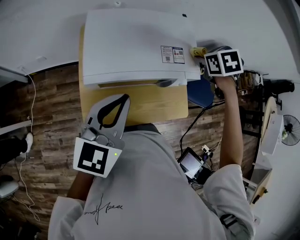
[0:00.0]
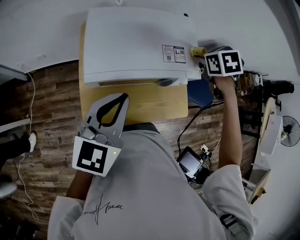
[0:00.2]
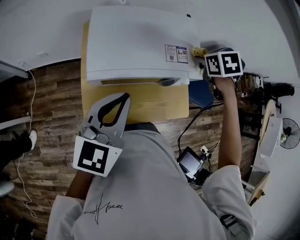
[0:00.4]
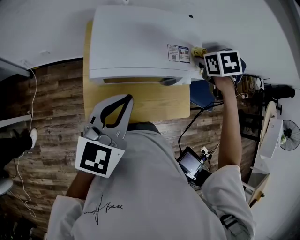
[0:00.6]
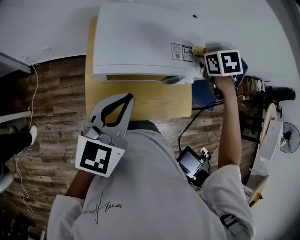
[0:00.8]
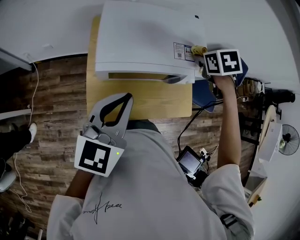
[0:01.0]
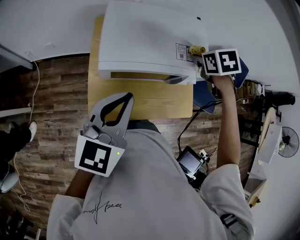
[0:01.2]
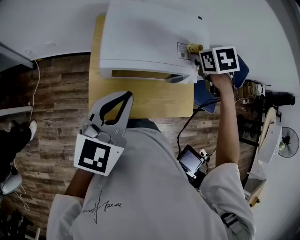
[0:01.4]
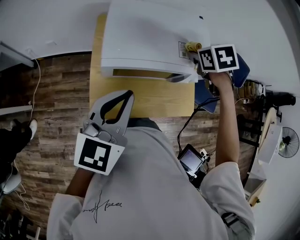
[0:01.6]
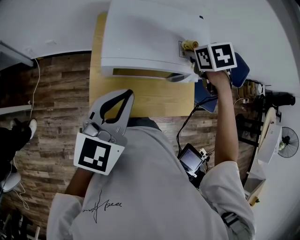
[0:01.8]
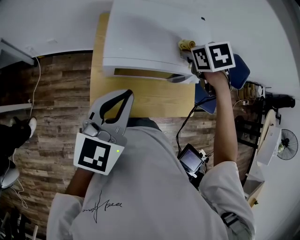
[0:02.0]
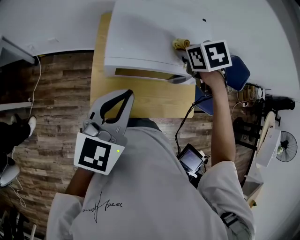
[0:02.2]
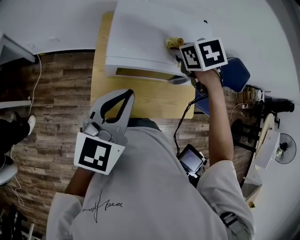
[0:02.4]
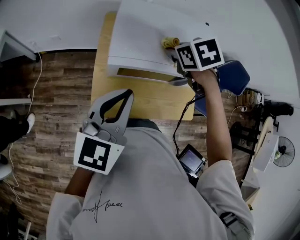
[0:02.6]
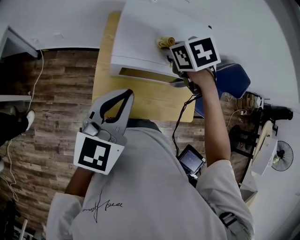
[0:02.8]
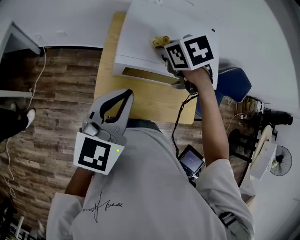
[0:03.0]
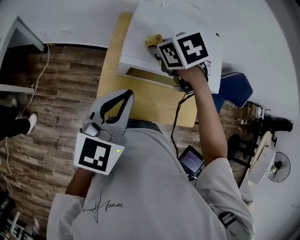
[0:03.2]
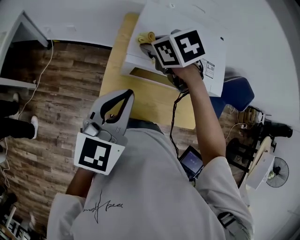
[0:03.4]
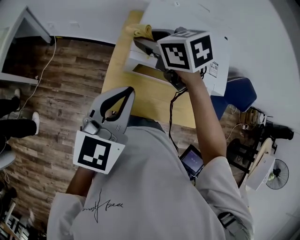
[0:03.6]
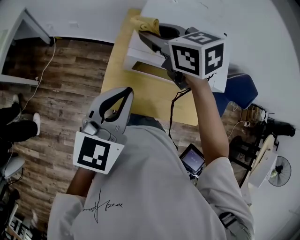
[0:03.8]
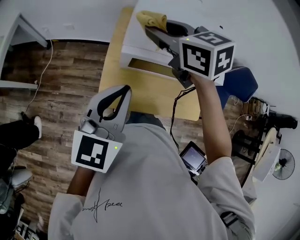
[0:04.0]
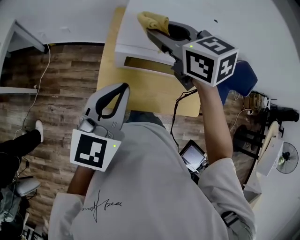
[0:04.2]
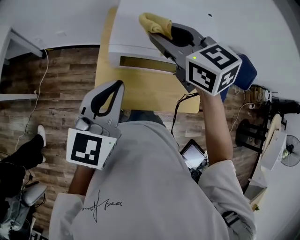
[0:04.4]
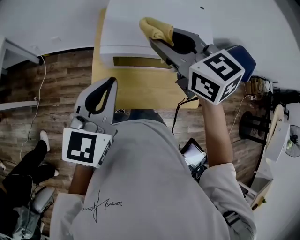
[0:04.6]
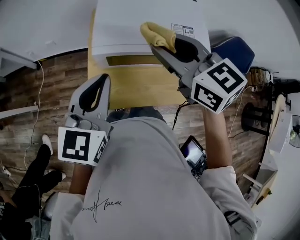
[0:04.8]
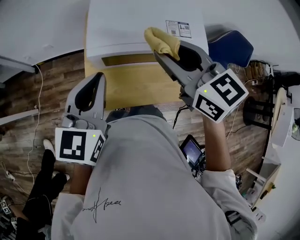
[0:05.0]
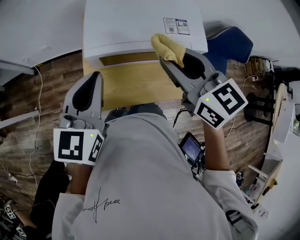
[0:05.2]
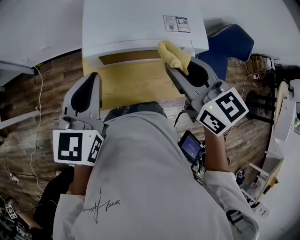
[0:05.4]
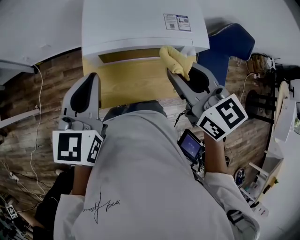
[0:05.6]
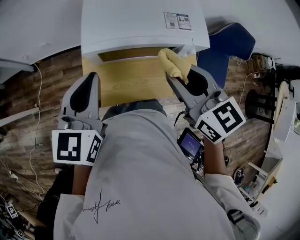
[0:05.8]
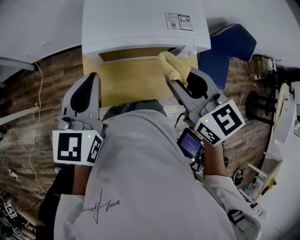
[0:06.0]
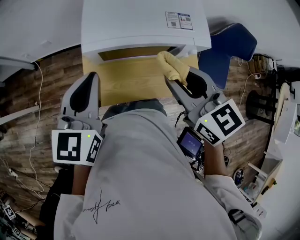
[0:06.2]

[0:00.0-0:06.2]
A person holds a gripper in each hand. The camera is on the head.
0:00.0 to 0:01.6: The left gripper ends up approximately 5 cm from where it was, while the right gripper travels to the left by roughly 10 cm.
0:01.6 to 0:03.2: The right gripper moves roughly 25 cm, and swivels some 30 degrees.
0:03.2 to 0:04.6: The right gripper heads upward and backward, covering approximately 15 cm, goes to the left and returns, some 10 cm each way, and angles its fingers upward, by about 40 degrees.
0:04.6 to 0:06.2: The right gripper goes about 15 cm backward and to the right.

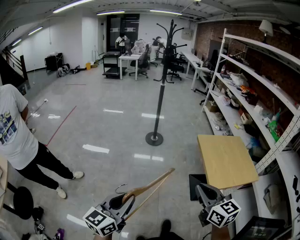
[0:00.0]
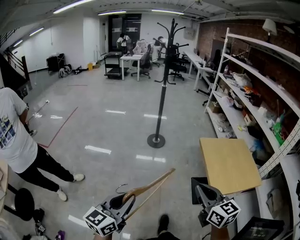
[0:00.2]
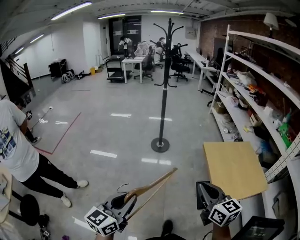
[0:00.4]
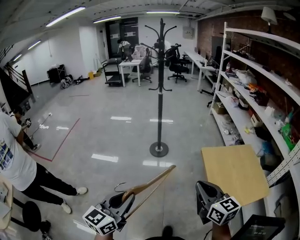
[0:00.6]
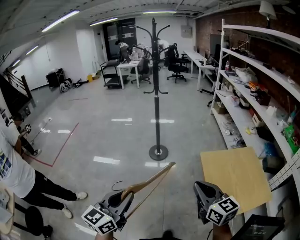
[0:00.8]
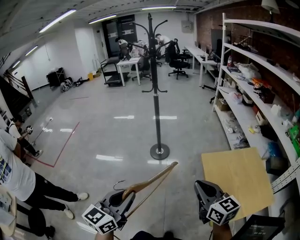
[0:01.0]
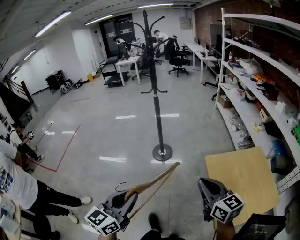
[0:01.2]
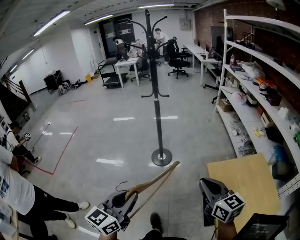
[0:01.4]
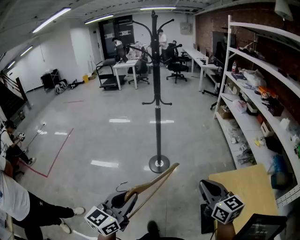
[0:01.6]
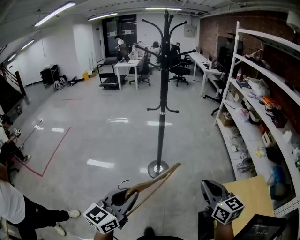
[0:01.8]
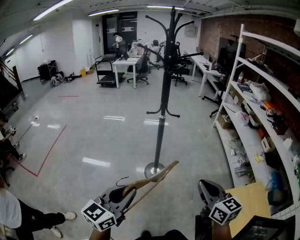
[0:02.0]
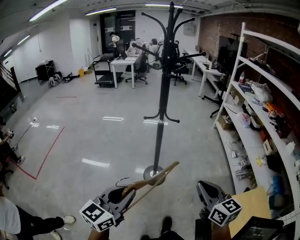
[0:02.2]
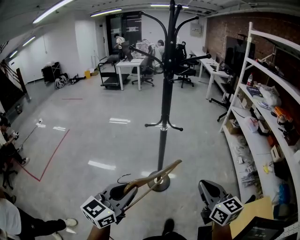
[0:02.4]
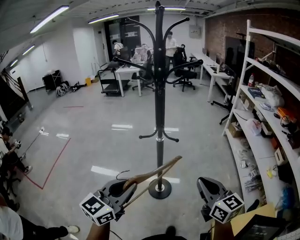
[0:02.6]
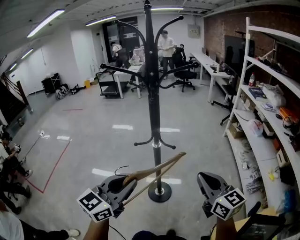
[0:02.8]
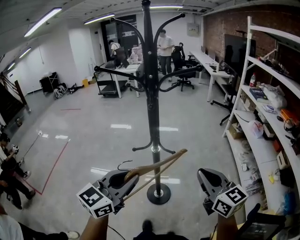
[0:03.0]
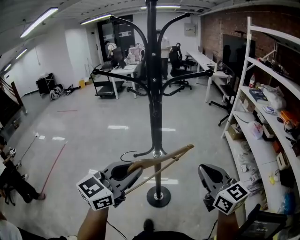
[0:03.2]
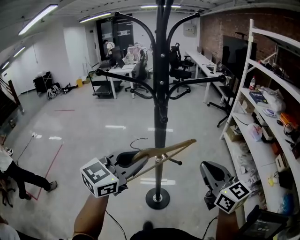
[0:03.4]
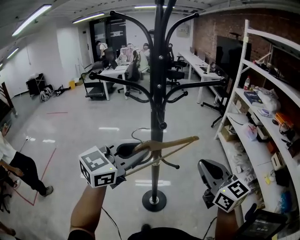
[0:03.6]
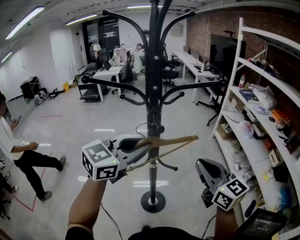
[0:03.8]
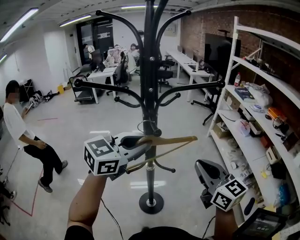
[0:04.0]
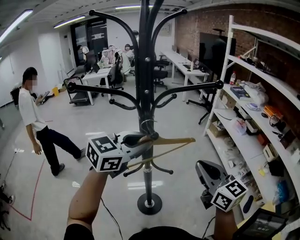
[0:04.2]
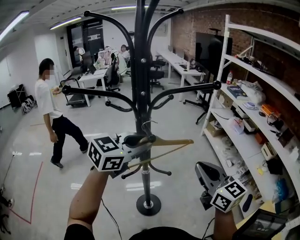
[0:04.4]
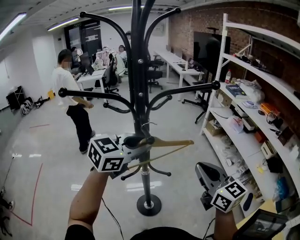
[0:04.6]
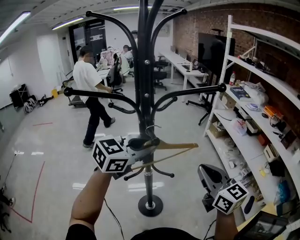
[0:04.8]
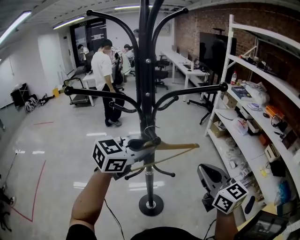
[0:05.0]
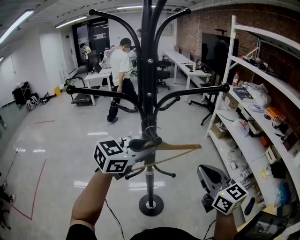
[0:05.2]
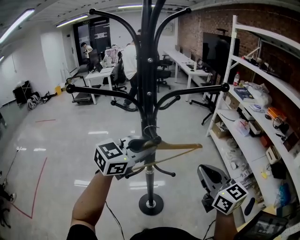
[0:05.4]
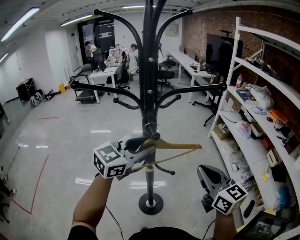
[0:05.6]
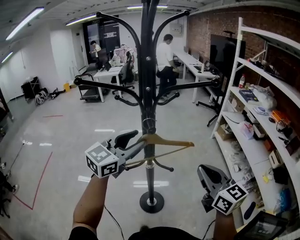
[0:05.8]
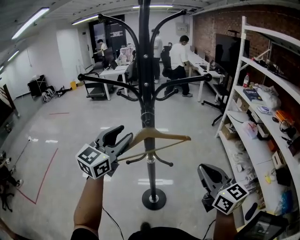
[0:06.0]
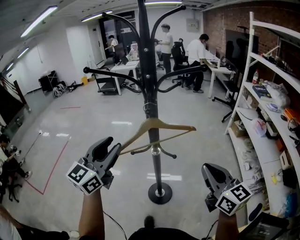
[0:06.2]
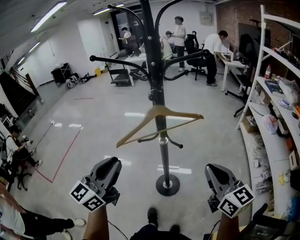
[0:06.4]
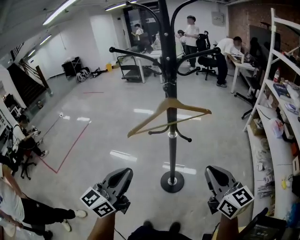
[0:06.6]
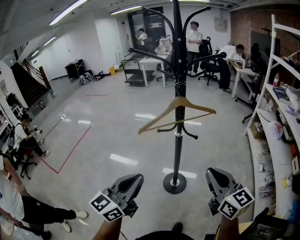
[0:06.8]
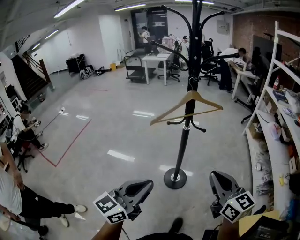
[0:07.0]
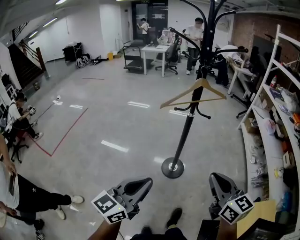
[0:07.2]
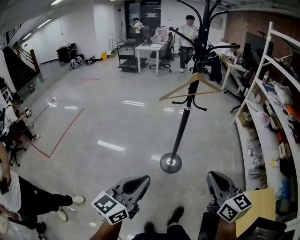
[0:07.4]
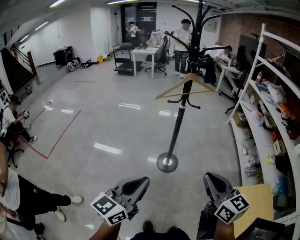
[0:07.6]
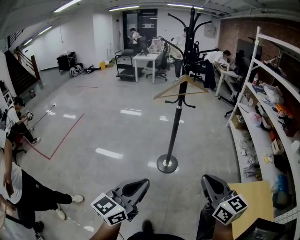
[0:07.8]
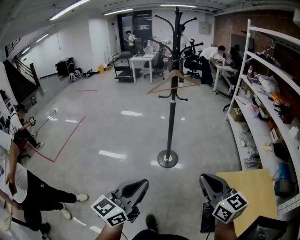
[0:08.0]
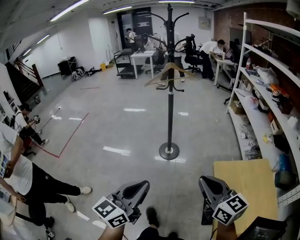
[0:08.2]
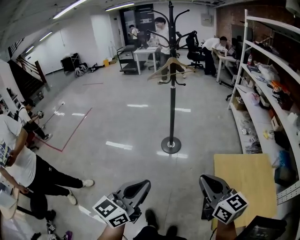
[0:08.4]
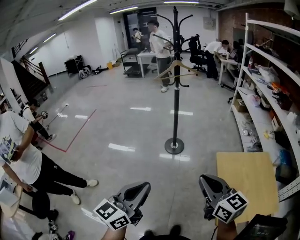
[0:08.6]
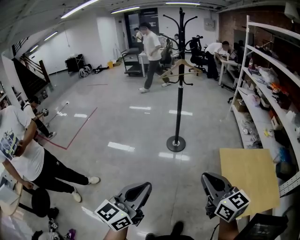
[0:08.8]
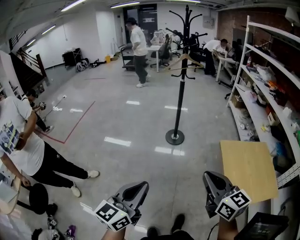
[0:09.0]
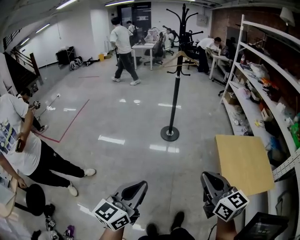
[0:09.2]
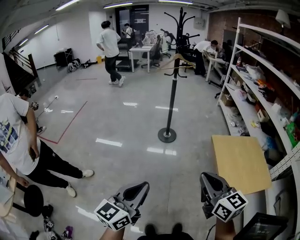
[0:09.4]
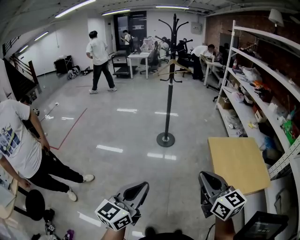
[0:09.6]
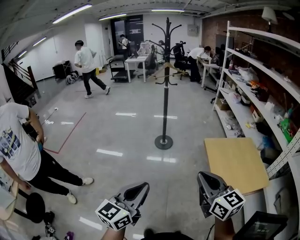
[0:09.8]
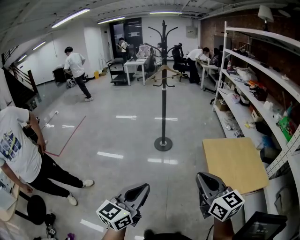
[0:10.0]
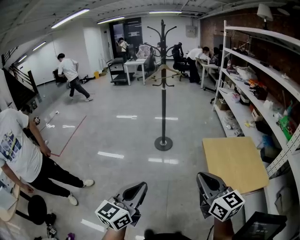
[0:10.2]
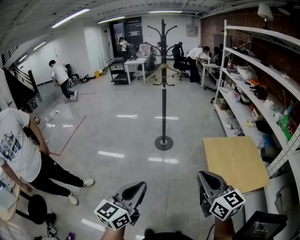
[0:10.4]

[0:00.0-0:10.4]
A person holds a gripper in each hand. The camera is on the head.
0:00.0 to 0:01.4: The grippers both shift forward by roughly 35 cm.
0:01.4 to 0:03.0: Both grippers are carried forward, about 50 cm.
0:03.0 to 0:04.4: The left gripper travels forward by approximately 25 cm, and turns by about 30 degrees; the right gripper is displaced forward by approximately 10 cm.
0:04.4 to 0:06.0: The left gripper moves to the left and backward, approximately 10 cm, turns by roughly 30 degrees, and opens.
0:06.0 to 0:07.4: The left gripper moves backward, approximately 50 cm, turns by some 20 degrees, and closes its fingers. Meanwhile the right gripper moves backward, roughly 30 cm.
0:07.4 to 0:09.0: The two grippers travel together, backward, about 40 cm.
0:09.0 to 0:10.4: The right gripper is displaced backward and to the right by roughly 10 cm, while the left gripper moves to the right and backward, roughly 10 cm.

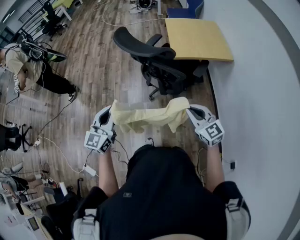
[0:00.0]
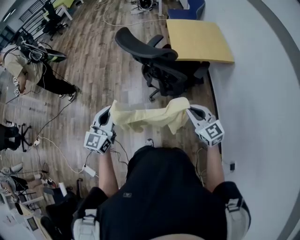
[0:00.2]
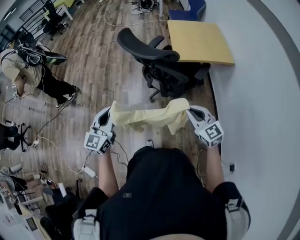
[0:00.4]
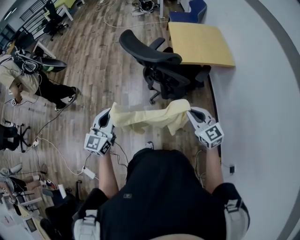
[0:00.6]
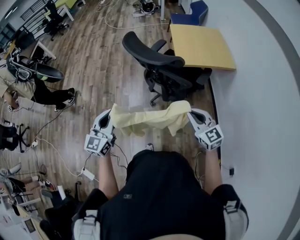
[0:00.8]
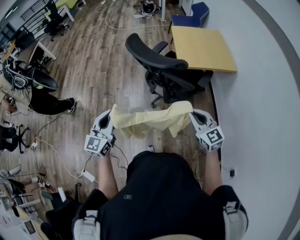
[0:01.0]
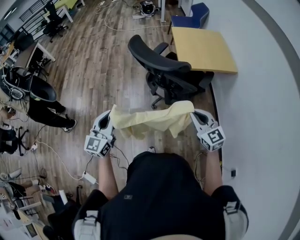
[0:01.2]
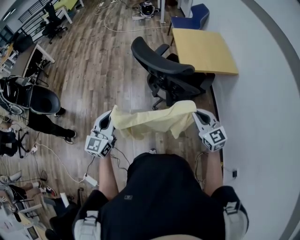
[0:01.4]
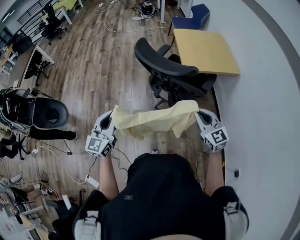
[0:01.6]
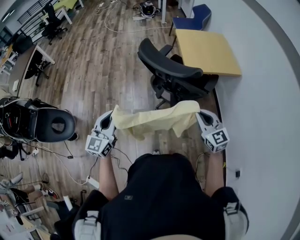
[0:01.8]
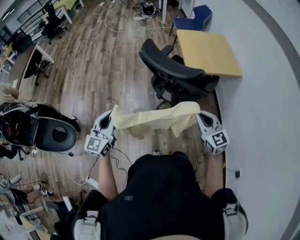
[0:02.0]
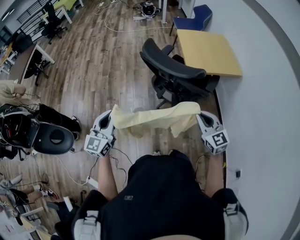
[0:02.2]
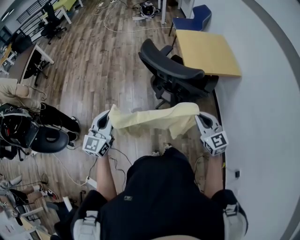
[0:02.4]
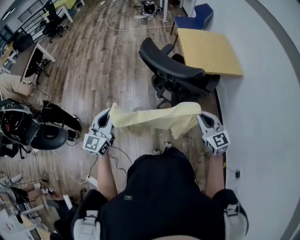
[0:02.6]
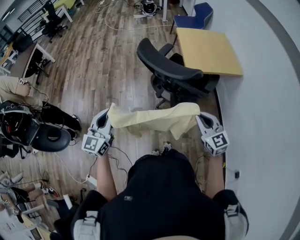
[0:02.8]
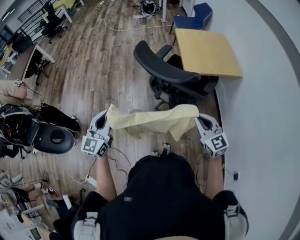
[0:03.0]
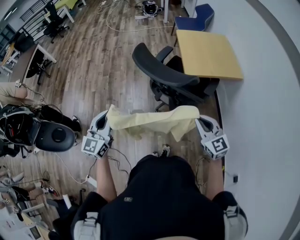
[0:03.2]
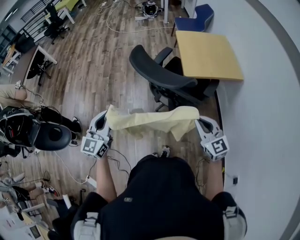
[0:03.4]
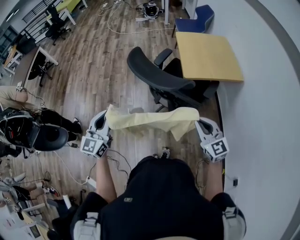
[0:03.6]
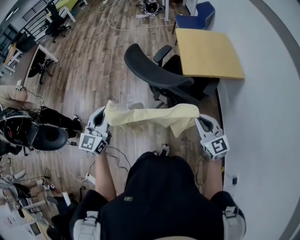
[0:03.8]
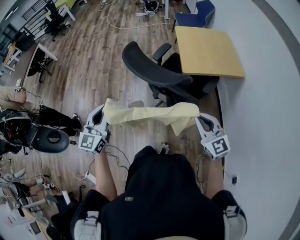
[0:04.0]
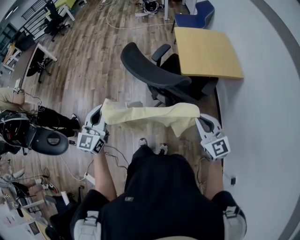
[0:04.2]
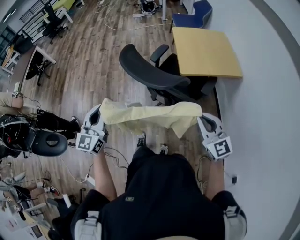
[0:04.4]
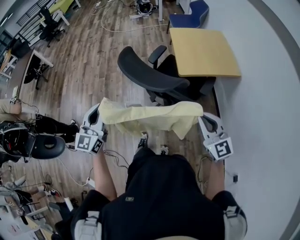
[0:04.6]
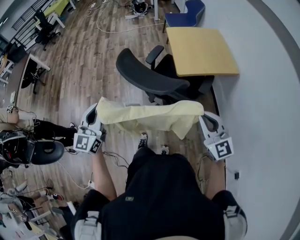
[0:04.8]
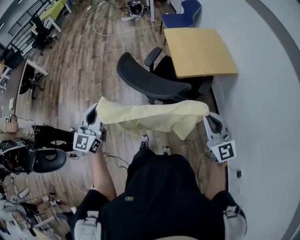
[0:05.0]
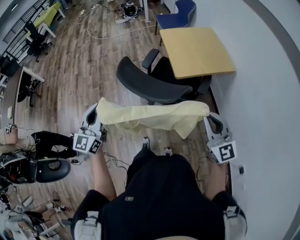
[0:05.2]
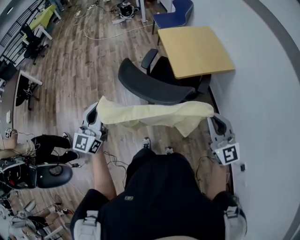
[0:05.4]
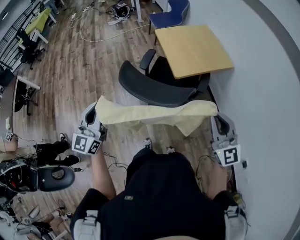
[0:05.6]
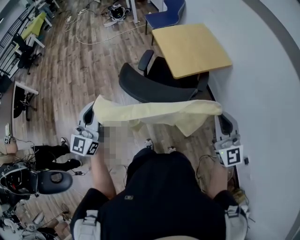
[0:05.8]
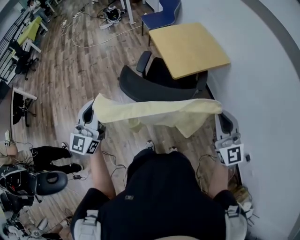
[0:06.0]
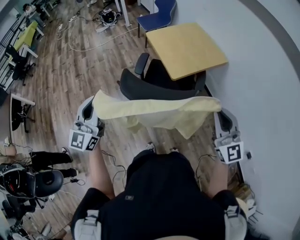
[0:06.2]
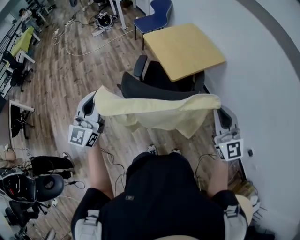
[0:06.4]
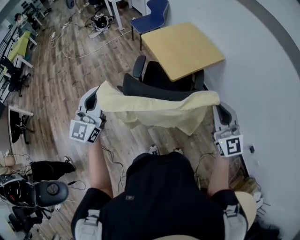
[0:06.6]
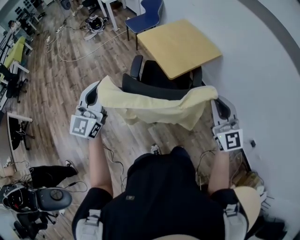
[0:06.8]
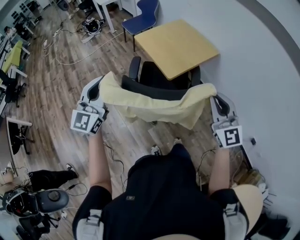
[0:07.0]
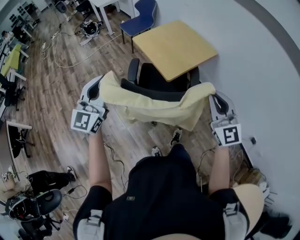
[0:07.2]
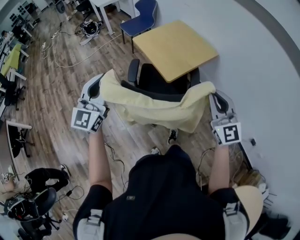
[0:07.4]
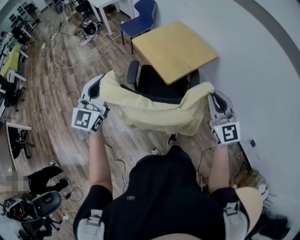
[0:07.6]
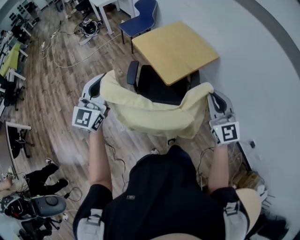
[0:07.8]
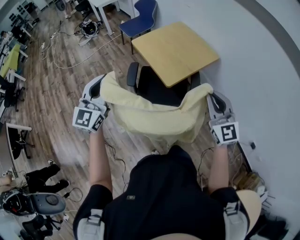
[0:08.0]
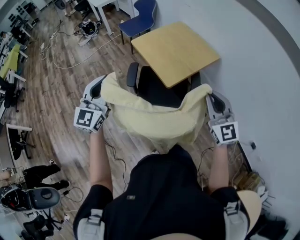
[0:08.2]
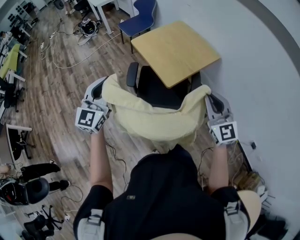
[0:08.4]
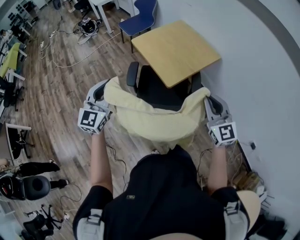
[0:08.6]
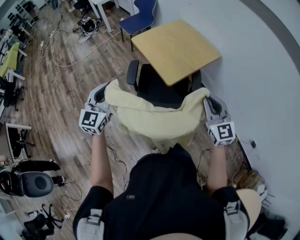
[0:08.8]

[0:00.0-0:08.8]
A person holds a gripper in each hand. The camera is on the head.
0:00.0 to 0:01.4: The left gripper is displaced to the left and forward by roughly 10 cm. The right gripper travels forward and to the left by some 10 cm.
0:01.4 to 0:03.0: The left gripper ends up about 5 cm from where it was.
0:03.0 to 0:04.4: The right gripper goes approximately 5 cm to the right. The left gripper travels to the right and forward by some 5 cm.
0:04.4 to 0:05.8: The right gripper shifts approximately 10 cm upward, and rotates approximately 30 degrees; the left gripper shifts approximately 15 cm forward, to the left and upward, and turns by some 20 degrees.
0:05.8 to 0:07.4: The right gripper goes roughly 10 cm forward. The left gripper goes some 20 cm forward.
0:07.4 to 0:08.8: Both grippers travel together downward and forward, about 10 cm.
